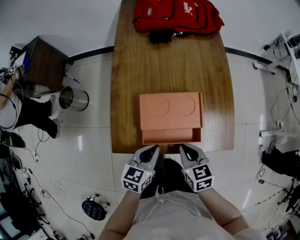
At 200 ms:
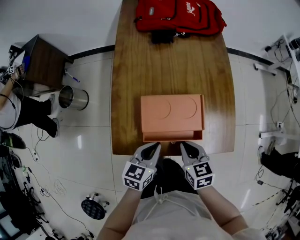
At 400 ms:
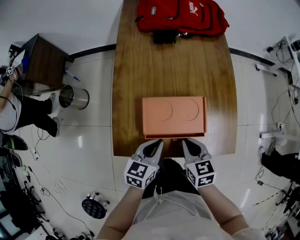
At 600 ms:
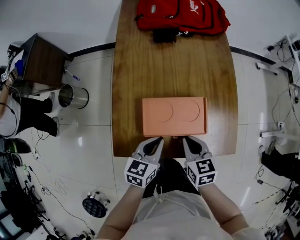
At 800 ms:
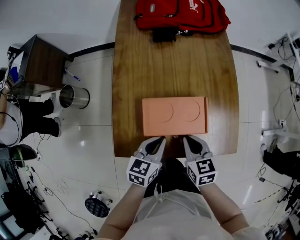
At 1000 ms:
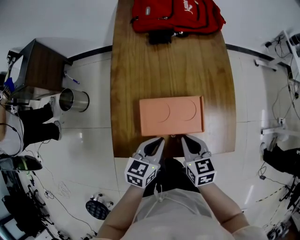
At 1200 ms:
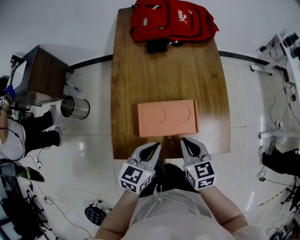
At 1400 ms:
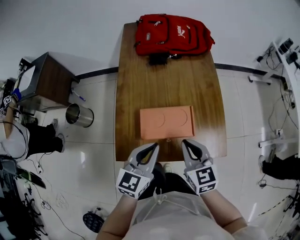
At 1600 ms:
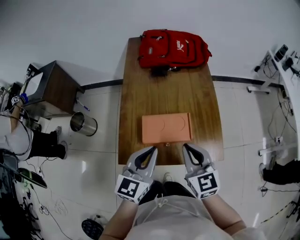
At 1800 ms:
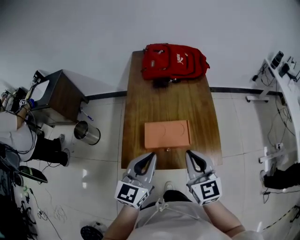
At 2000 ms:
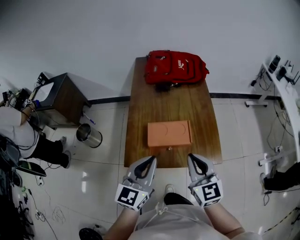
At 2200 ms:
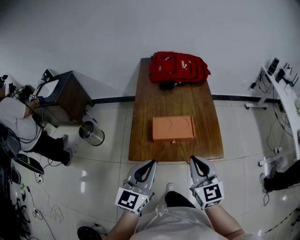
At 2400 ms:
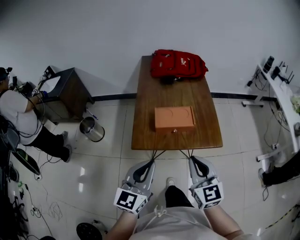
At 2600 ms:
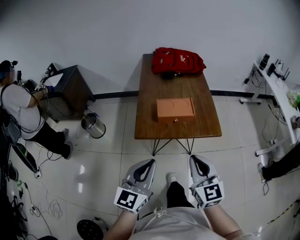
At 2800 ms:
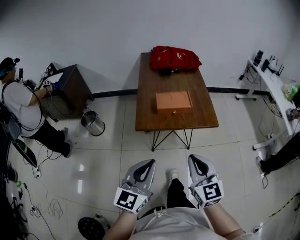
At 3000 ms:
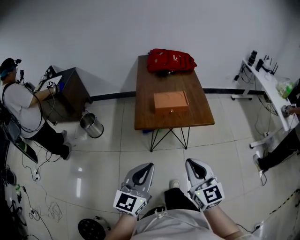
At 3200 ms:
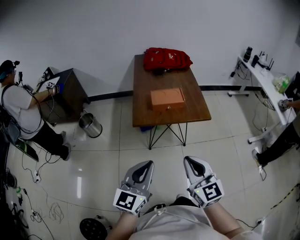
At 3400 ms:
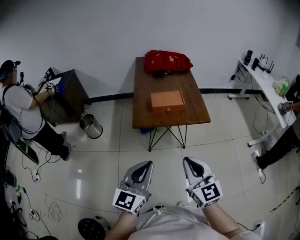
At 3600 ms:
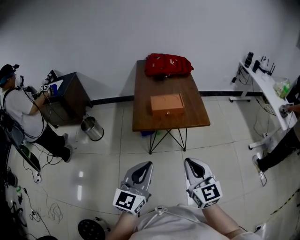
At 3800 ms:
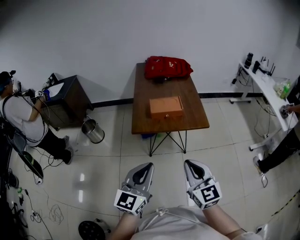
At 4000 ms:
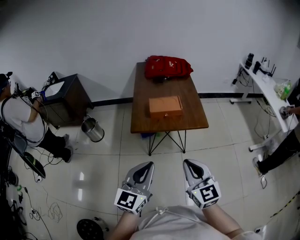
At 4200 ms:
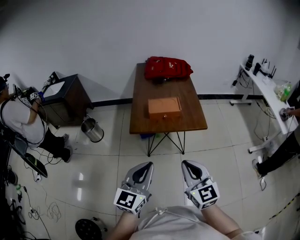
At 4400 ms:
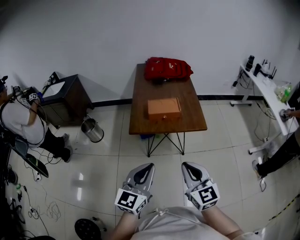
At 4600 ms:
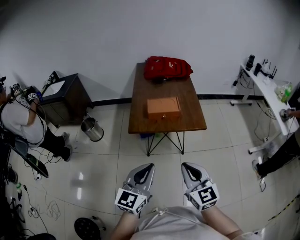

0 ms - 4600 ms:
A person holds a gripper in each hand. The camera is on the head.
0 ms - 1600 ms: The grippers both shift upward by roughly 20 cm. The left gripper swivels about 30 degrees; the right gripper changes its angle by some 30 degrees.
1600 ms - 3000 ms: The pair of grippers is taken backward, about 40 cm.
3000 ms - 4600 ms: The two grippers go about 5 cm to the right.

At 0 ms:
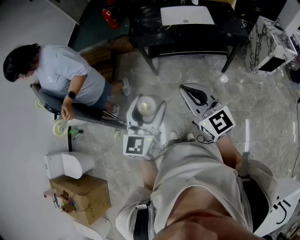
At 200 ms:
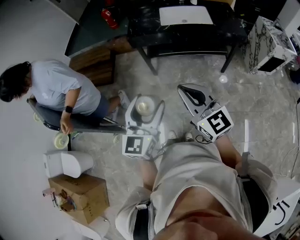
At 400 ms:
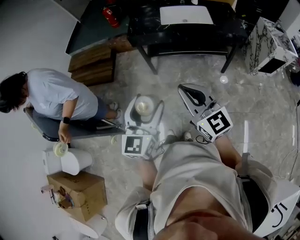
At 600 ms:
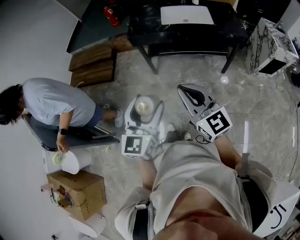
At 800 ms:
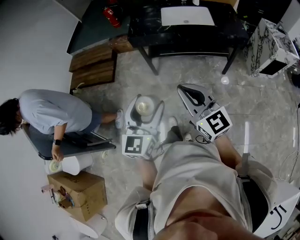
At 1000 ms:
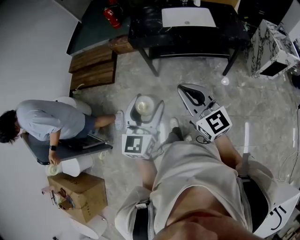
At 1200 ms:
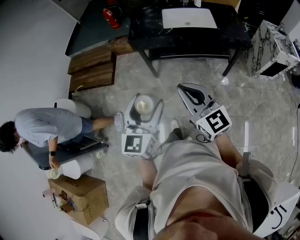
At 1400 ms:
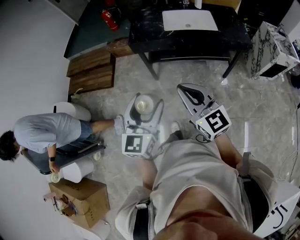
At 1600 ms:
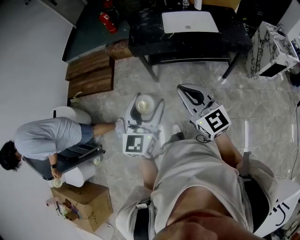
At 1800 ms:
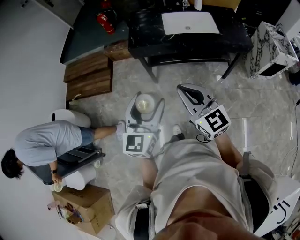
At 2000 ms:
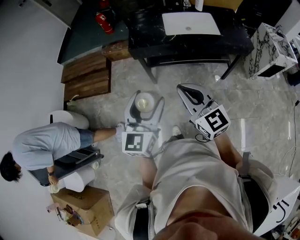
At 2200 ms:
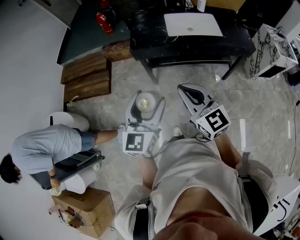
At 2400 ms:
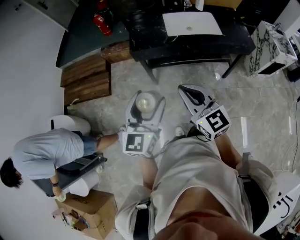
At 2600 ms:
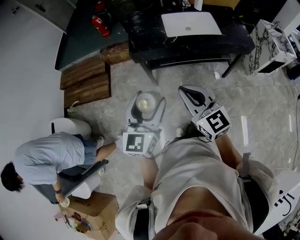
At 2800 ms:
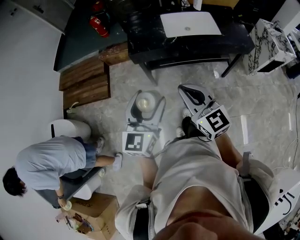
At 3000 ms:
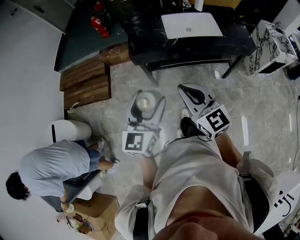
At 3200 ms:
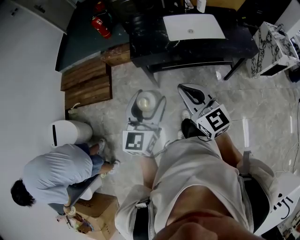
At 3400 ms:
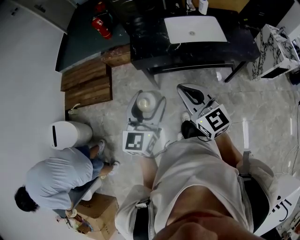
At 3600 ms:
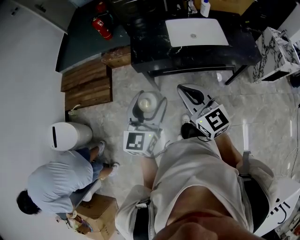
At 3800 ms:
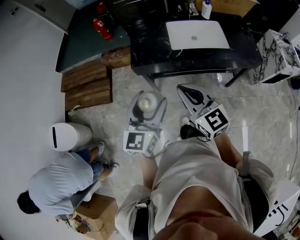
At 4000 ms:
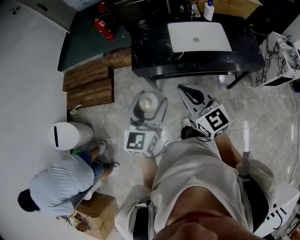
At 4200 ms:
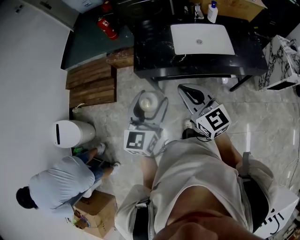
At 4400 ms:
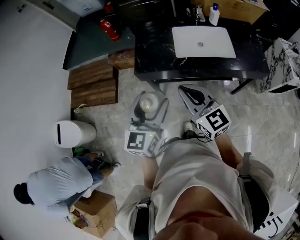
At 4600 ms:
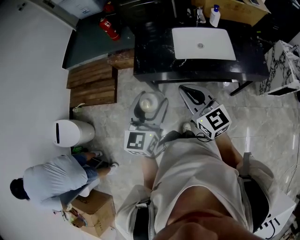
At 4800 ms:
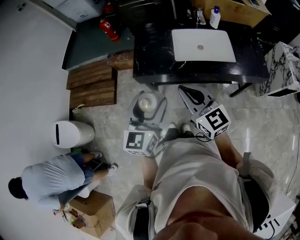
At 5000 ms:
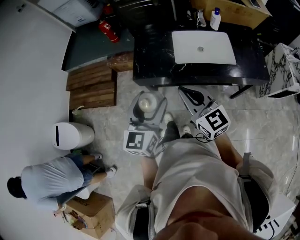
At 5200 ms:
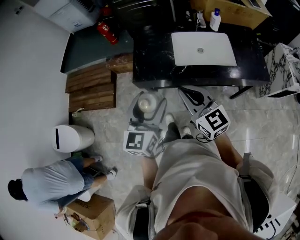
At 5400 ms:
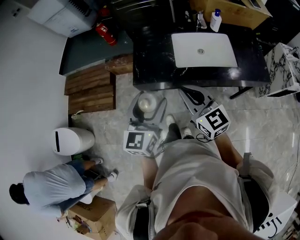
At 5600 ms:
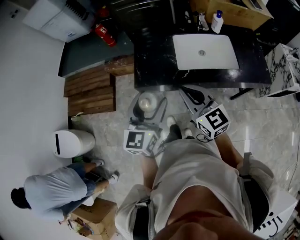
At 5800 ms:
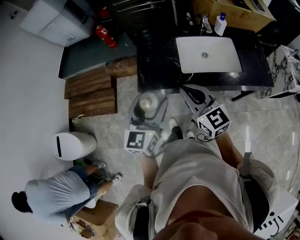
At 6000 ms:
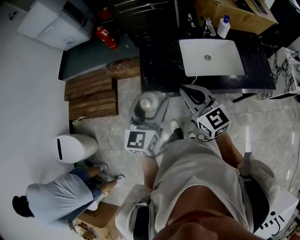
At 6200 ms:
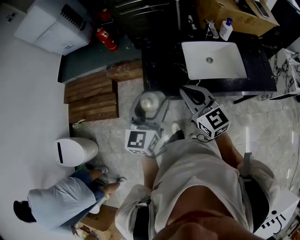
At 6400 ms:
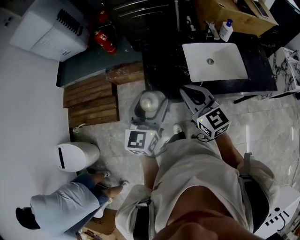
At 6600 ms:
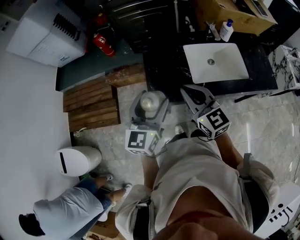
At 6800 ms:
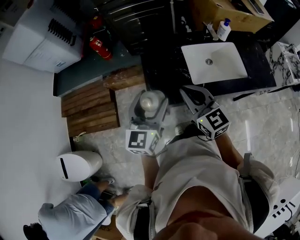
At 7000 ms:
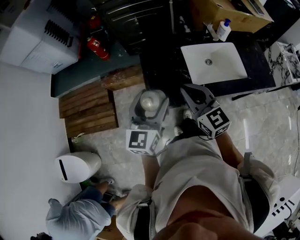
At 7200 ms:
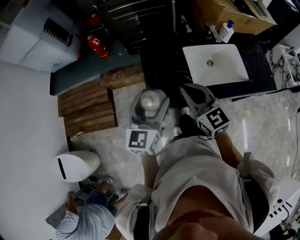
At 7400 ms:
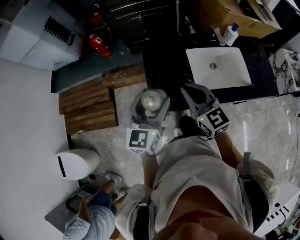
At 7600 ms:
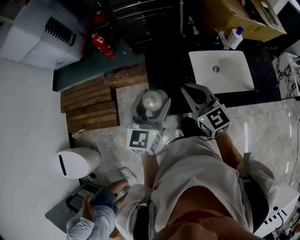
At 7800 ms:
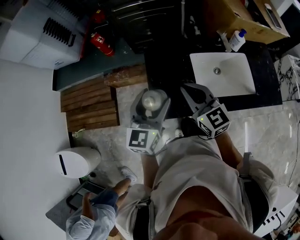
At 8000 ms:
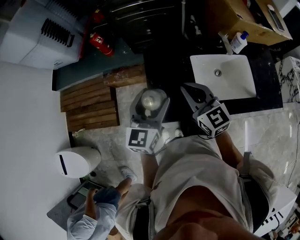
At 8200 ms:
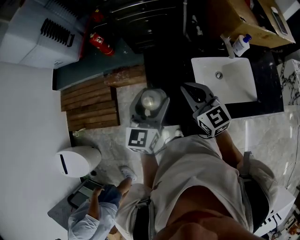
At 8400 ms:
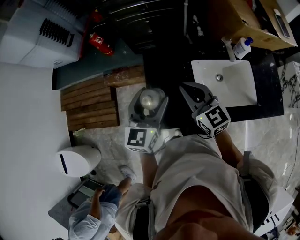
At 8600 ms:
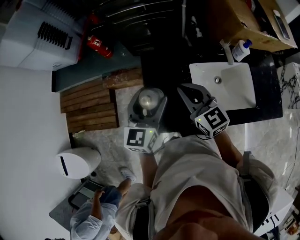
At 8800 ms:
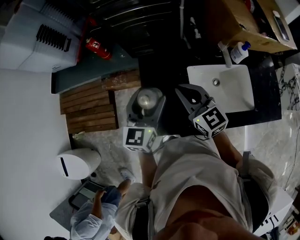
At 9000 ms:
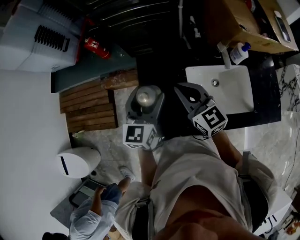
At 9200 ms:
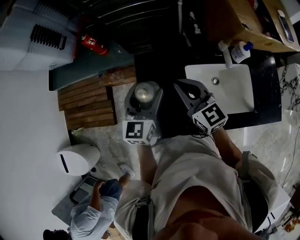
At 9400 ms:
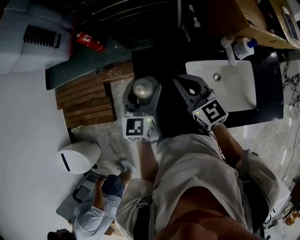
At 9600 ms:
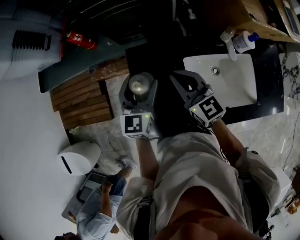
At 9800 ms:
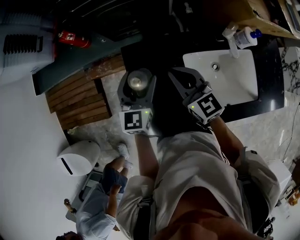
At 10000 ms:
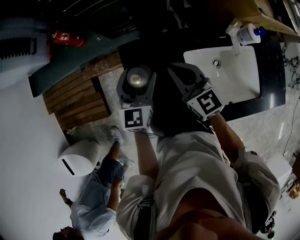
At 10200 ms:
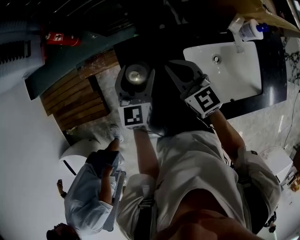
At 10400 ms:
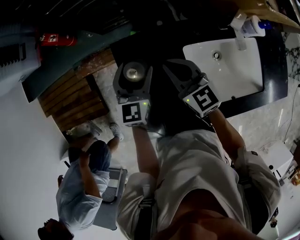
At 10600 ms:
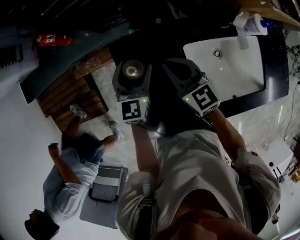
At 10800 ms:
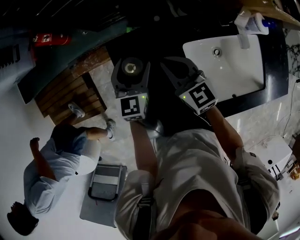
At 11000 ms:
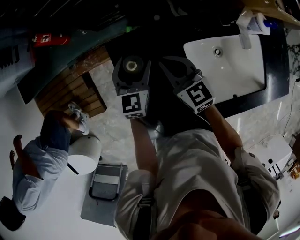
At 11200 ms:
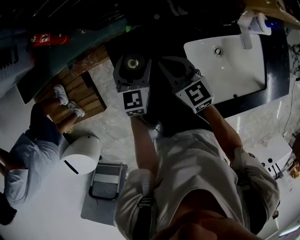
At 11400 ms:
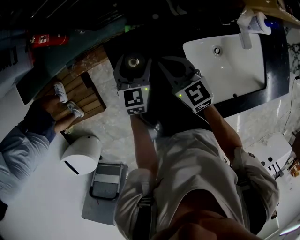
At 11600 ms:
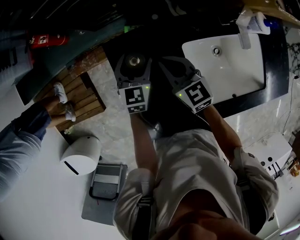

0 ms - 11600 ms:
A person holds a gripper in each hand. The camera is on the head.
0 ms - 1400 ms: The two grippers go about 5 cm forward.
1400 ms - 2800 ms: The right gripper goes roughly 15 cm forward and to the left. Meanwhile the left gripper is displaced forward by roughly 15 cm.
2800 ms - 4400 ms: The grippers both shift forward by about 15 cm.
4400 ms - 5800 ms: Both grippers move forward, about 15 cm.
5800 ms - 7200 ms: Both grippers move forward and to the left, some 15 cm.
7200 ms - 8800 ms: Both grippers travel together forward, approximately 15 cm.
8800 ms - 10200 ms: The two grippers go approximately 20 cm downward and forward.
10200 ms - 11600 ms: Both grippers travel together downward, some 10 cm.

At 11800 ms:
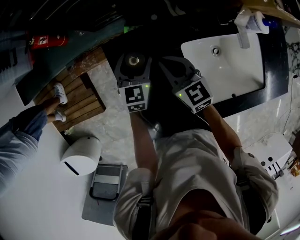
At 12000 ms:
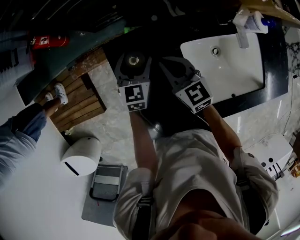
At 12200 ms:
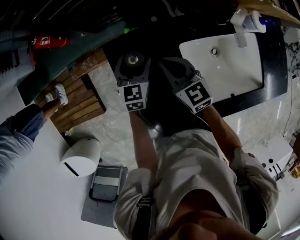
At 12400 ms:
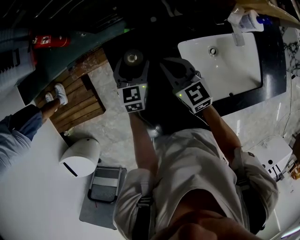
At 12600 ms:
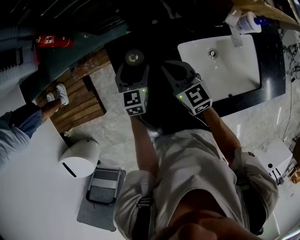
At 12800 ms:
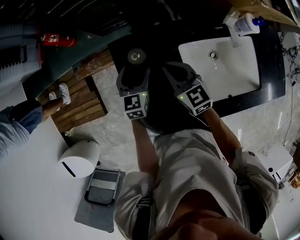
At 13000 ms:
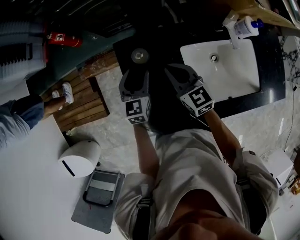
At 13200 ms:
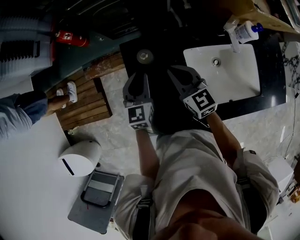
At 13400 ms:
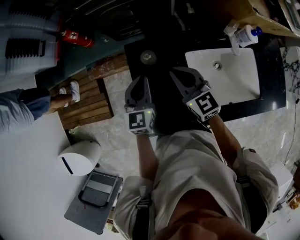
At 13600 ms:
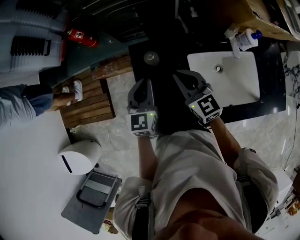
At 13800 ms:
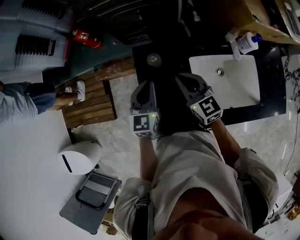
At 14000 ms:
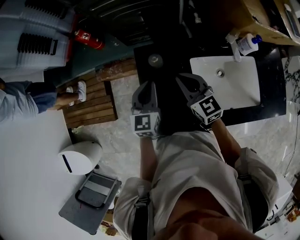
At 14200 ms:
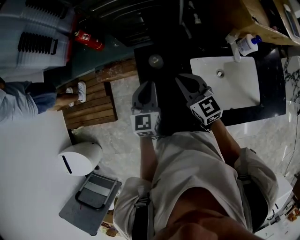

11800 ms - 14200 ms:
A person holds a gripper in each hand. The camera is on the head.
11800 ms - 13000 ms: The right gripper moves some 5 cm; the left gripper moves backward, some 5 cm.
13000 ms - 14200 ms: The left gripper travels upward and backward by some 10 cm, and closes up, while the right gripper is displaced upward by some 5 cm.

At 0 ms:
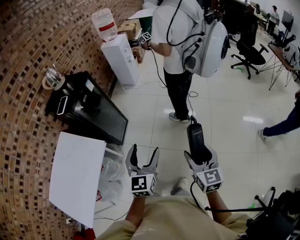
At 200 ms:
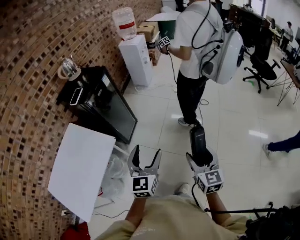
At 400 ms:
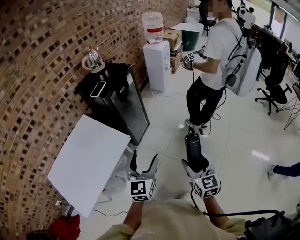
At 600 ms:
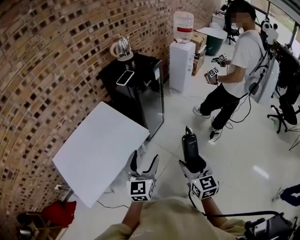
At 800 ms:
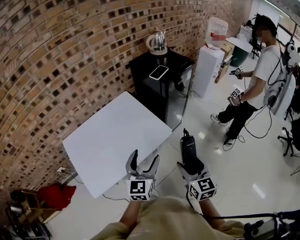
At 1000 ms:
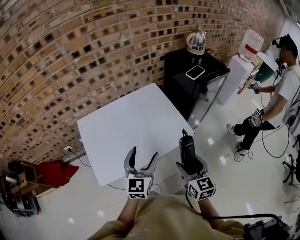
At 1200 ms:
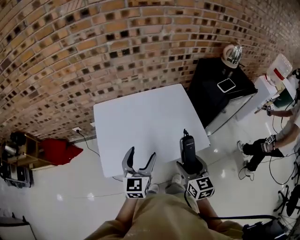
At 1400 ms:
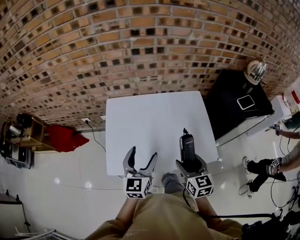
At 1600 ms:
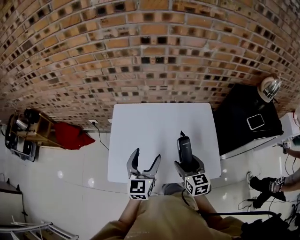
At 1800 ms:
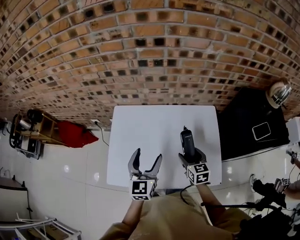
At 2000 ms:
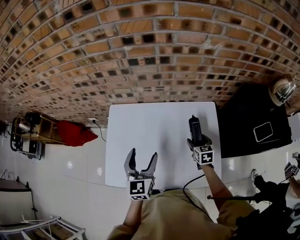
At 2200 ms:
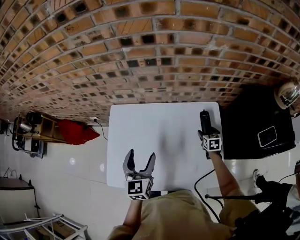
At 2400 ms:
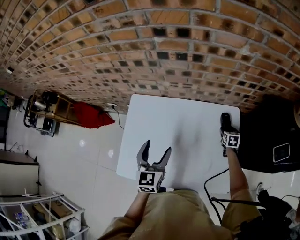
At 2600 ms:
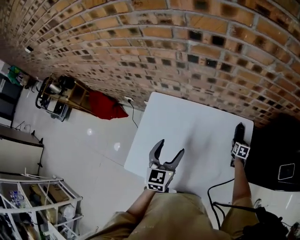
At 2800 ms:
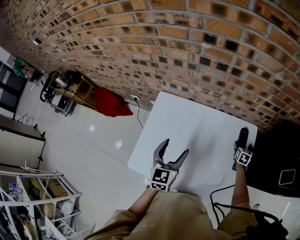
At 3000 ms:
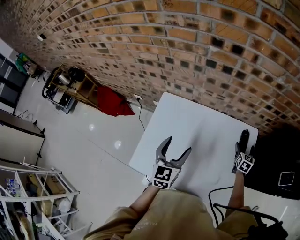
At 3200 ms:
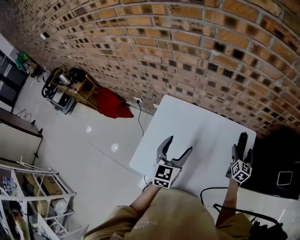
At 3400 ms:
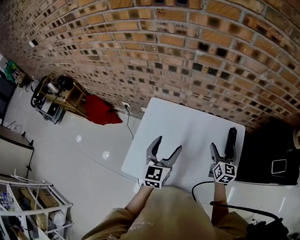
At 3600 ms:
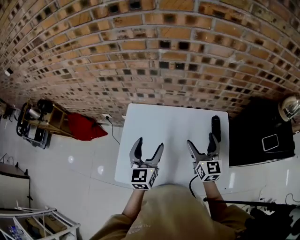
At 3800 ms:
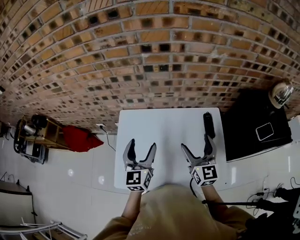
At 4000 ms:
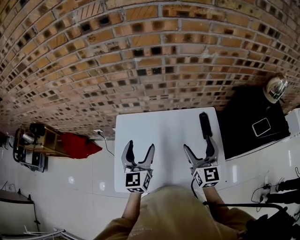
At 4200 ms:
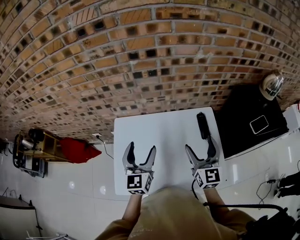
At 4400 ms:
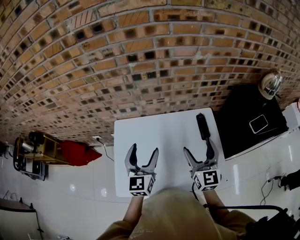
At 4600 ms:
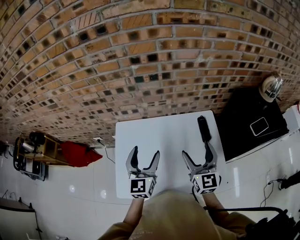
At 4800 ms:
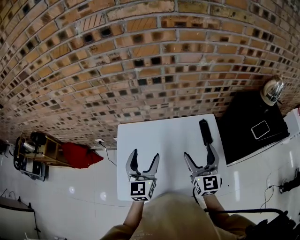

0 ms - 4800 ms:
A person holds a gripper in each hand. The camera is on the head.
0 ms - 1600 ms: The pair of grippers is taken some 80 cm. The right gripper turns by approximately 70 degrees, while the left gripper swivels some 60 degrees.
1600 ms - 3200 ms: The left gripper heads forward, covering approximately 10 cm; the right gripper is displaced forward and to the right by roughly 25 cm, and moves about 35 cm downward and comes back.
3200 ms - 4800 ms: The left gripper travels upward by some 10 cm. The right gripper is displaced upward and backward by approximately 30 cm, and swivels roughly 30 degrees.
